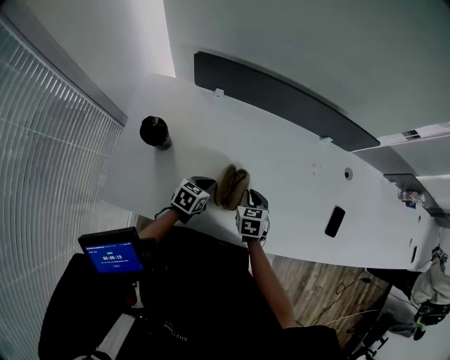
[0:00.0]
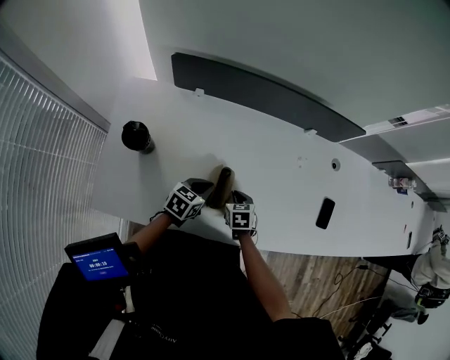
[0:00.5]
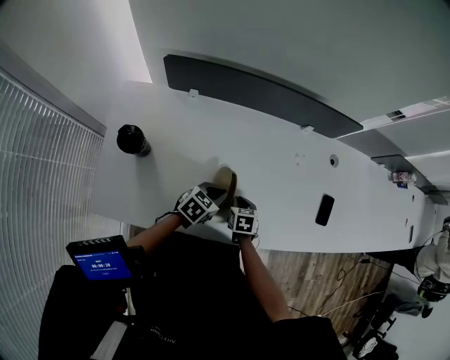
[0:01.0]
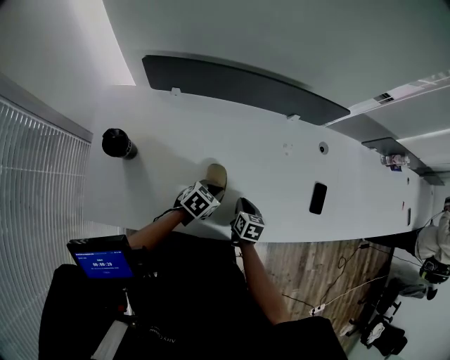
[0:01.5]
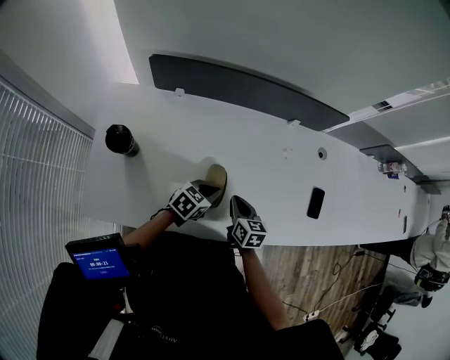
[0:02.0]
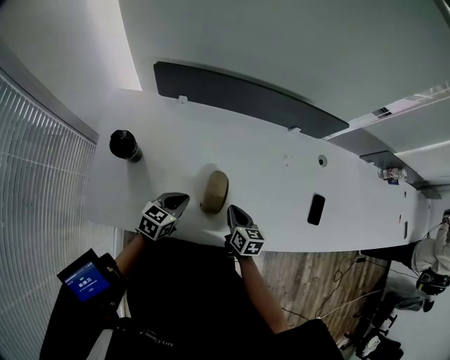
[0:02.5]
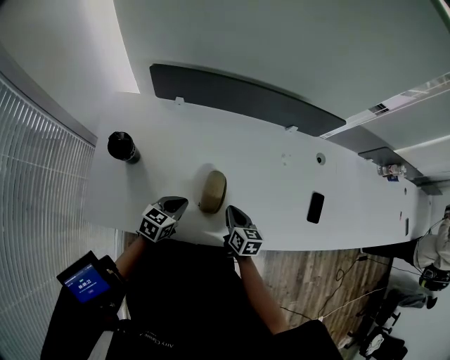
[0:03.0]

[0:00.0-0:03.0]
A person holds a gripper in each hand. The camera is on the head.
0:00.0 to 0:01.5: The two grippers go some 10 cm to the right. The left gripper changes its angle by about 20 degrees, while the right gripper swivels roughly 30 degrees.
0:01.5 to 0:03.0: The right gripper travels upward and to the left by approximately 5 cm, while the left gripper heads to the left and backward, covering roughly 15 cm, and turns by approximately 20 degrees.

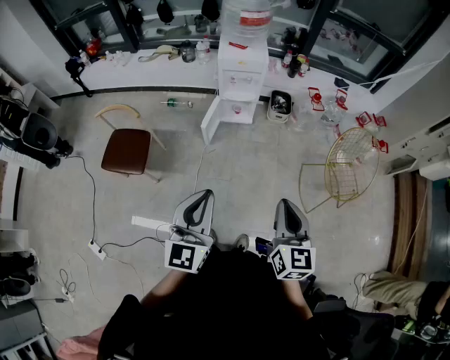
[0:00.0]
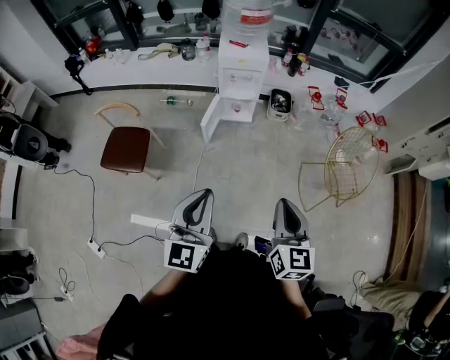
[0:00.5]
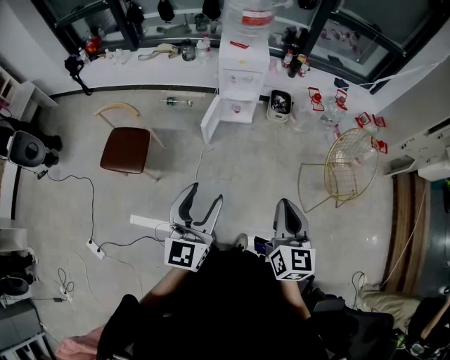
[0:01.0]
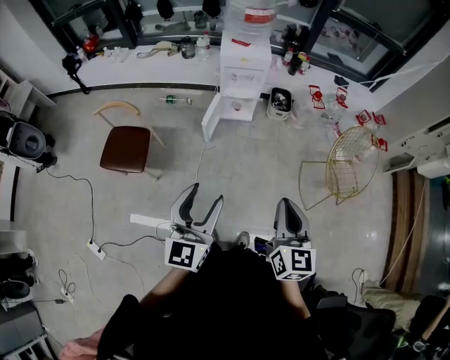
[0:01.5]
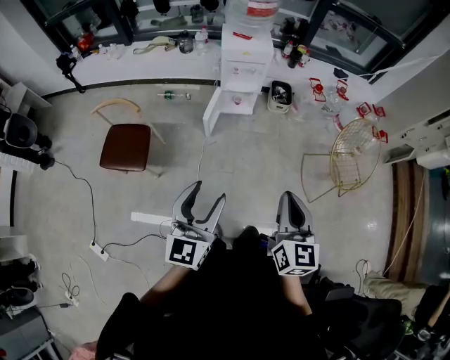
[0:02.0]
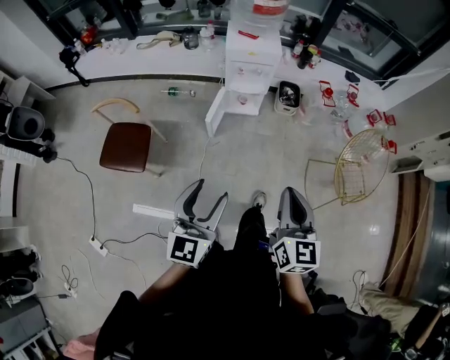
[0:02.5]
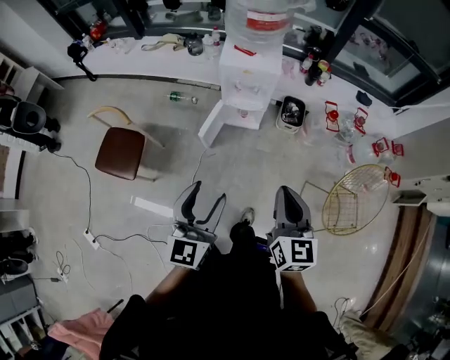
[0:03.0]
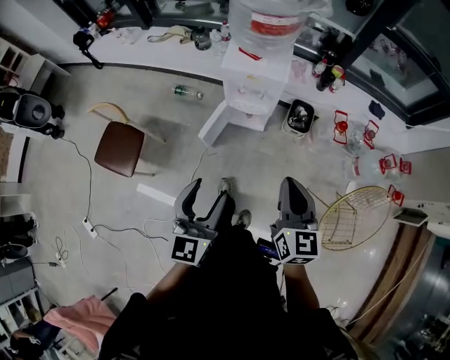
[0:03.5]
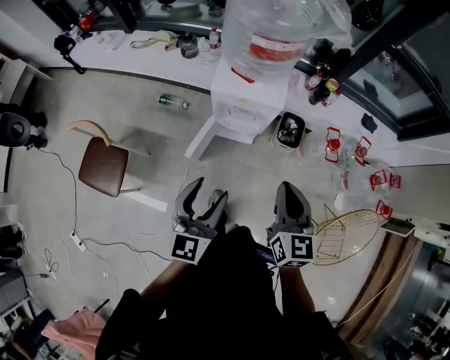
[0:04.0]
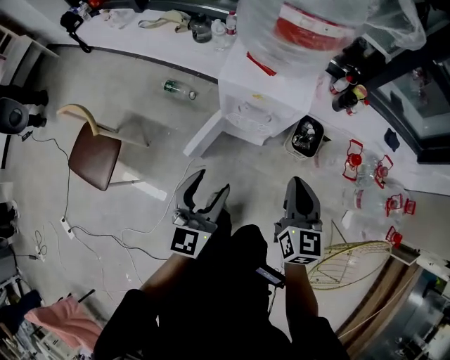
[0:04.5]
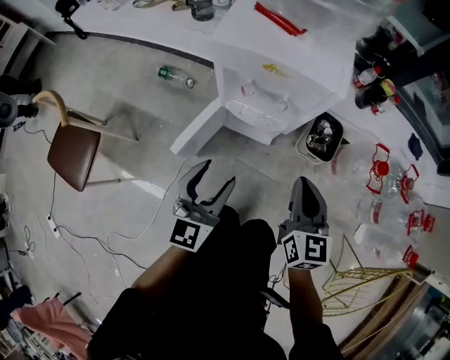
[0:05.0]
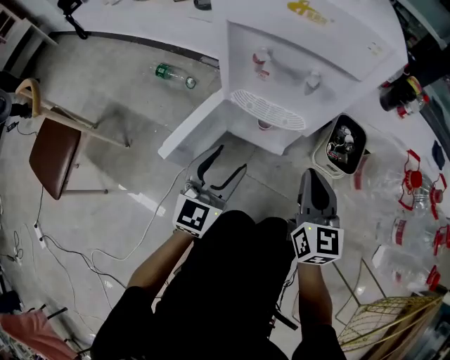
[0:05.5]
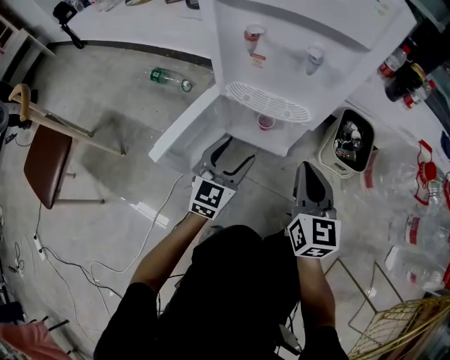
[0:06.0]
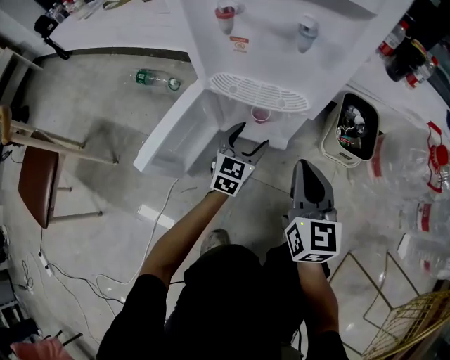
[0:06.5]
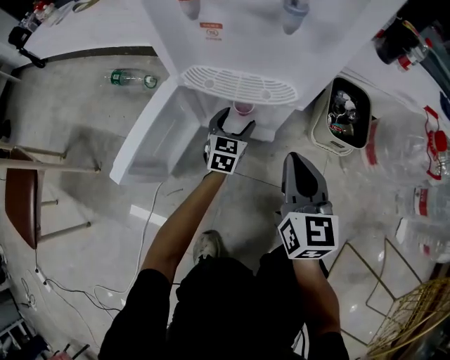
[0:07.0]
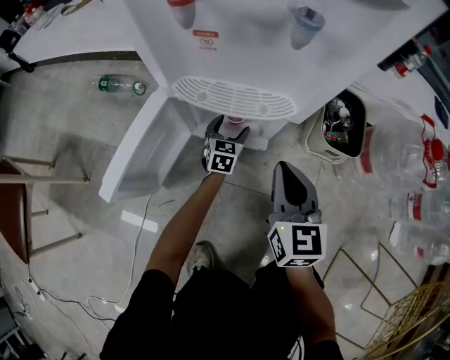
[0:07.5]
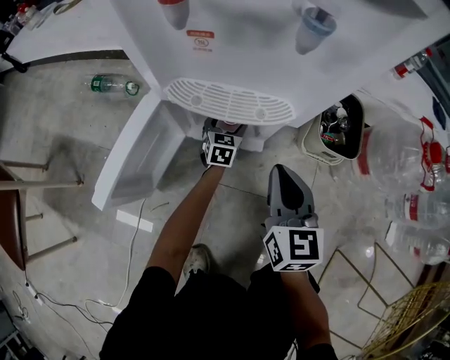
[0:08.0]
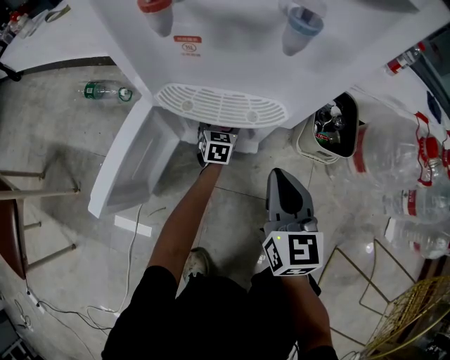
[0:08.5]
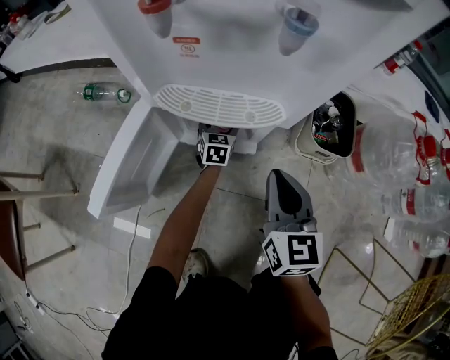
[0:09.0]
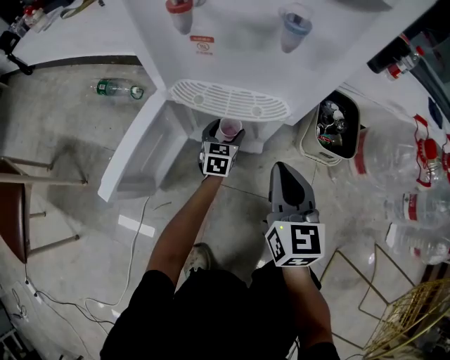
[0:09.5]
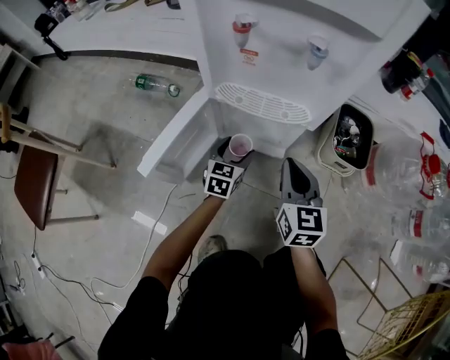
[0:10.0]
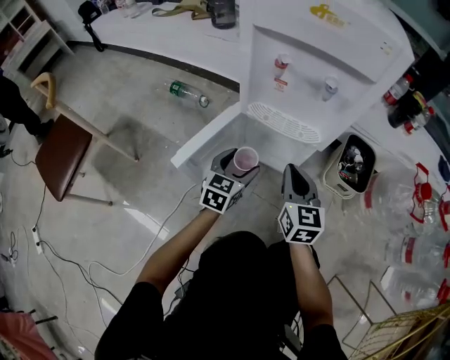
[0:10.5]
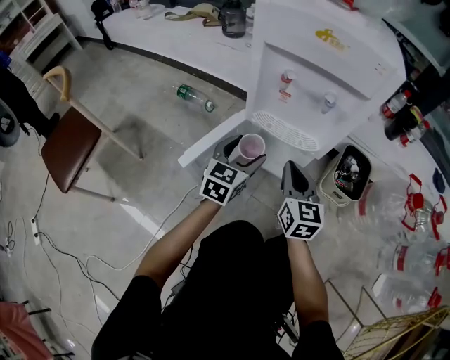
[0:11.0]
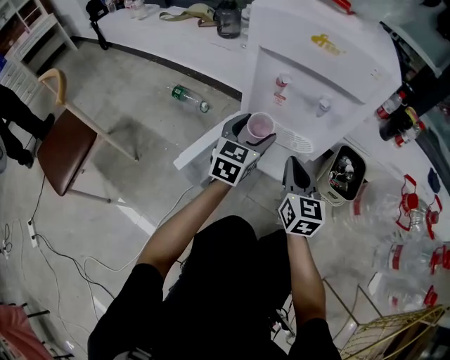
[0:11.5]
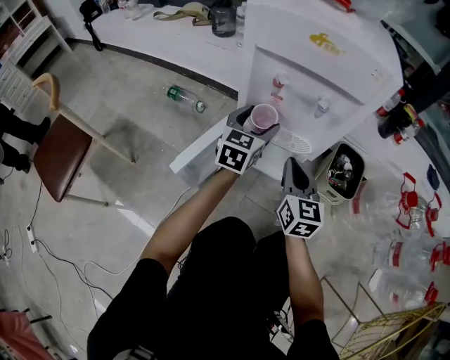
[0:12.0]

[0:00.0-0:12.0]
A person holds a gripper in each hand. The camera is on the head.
0:00.0 to 0:02.0: Both grippers travel together to the left, some 5 cm. The left gripper opens.
0:02.0 to 0:04.0: Both grippers are carried forward, approximately 50 cm.
0:04.0 to 0:06.0: Both grippers travel together downward, roughly 60 cm.
0:06.0 to 0:08.0: The right gripper is displaced downward by approximately 10 cm. Meanwhile the left gripper goes roughly 35 cm downward and forward.
0:08.0 to 0:10.0: The left gripper is displaced backward, upward and to the left by roughly 20 cm.
0:10.0 to 0:12.0: The right gripper is displaced upward by roughly 10 cm, while the left gripper goes about 25 cm upward.

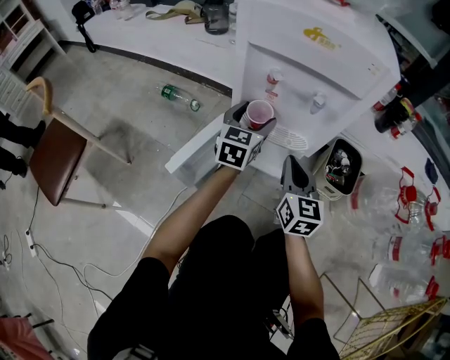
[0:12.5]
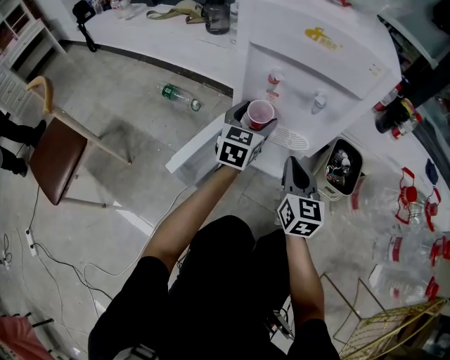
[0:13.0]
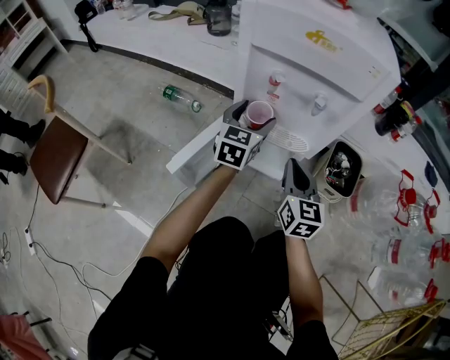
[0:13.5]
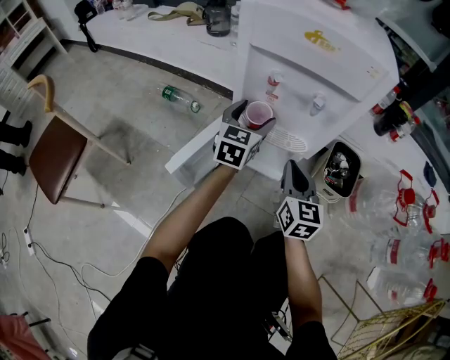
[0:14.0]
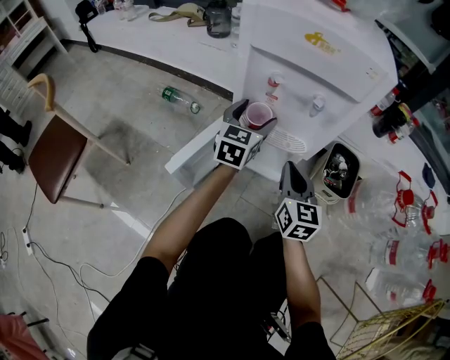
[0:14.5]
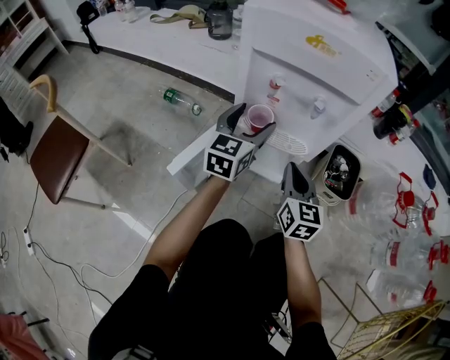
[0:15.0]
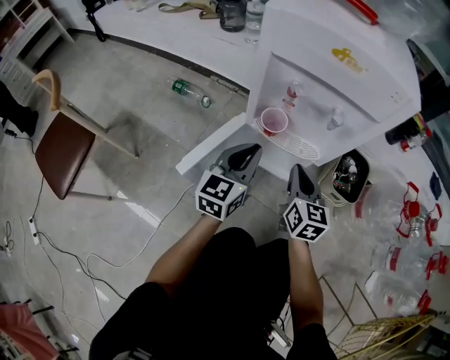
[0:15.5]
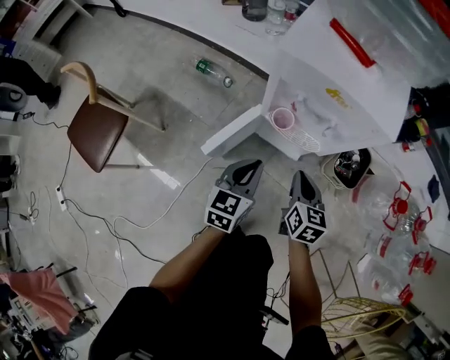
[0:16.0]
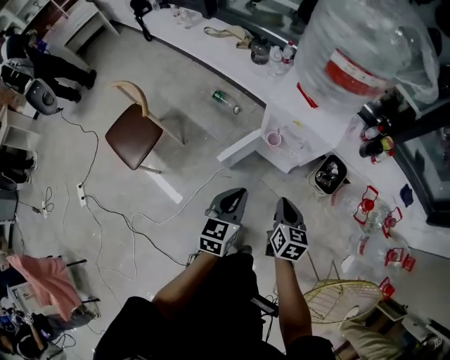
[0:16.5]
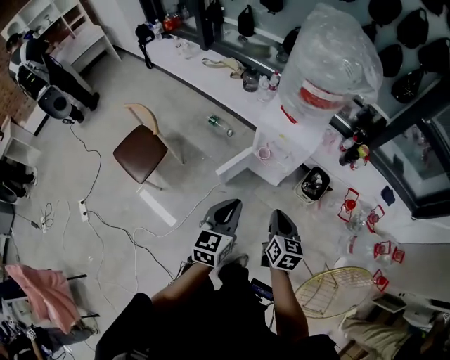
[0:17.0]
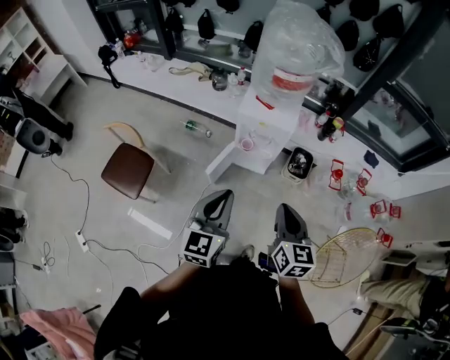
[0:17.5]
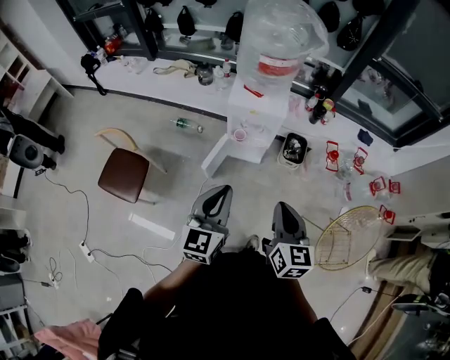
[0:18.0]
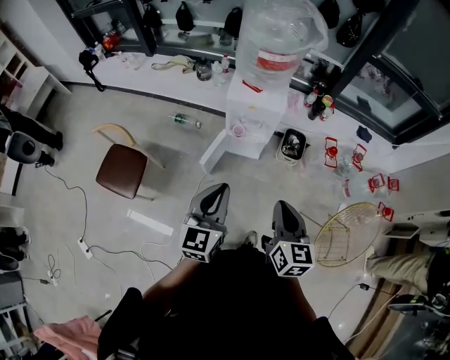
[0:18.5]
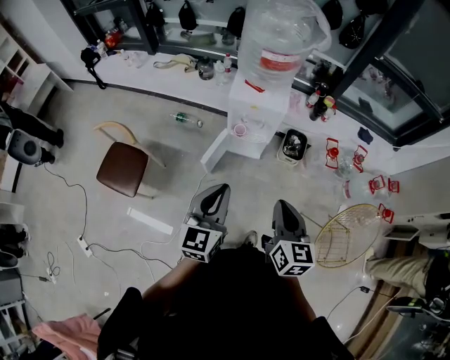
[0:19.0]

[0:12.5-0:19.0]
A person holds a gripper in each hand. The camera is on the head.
0:12.5 to 0:14.5: The grippers make only small movements.
0:14.5 to 0:17.0: The two grippers go some 60 cm upward and backward. The right gripper swivels about 20 degrees. Meanwhile the left gripper closes up.
0:17.0 to 0:19.0: The right gripper travels upward and backward by some 20 cm, while the left gripper heads upward and backward, covering about 10 cm.
